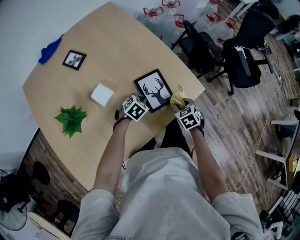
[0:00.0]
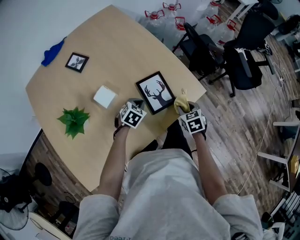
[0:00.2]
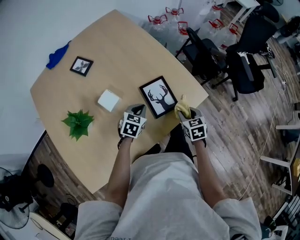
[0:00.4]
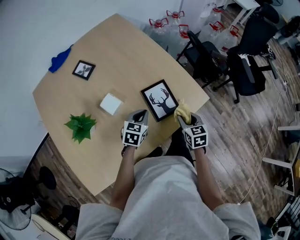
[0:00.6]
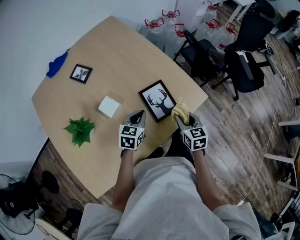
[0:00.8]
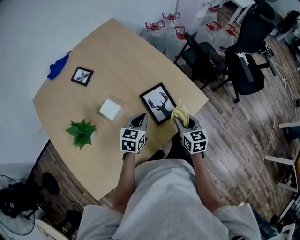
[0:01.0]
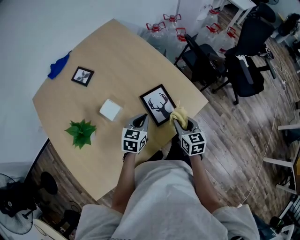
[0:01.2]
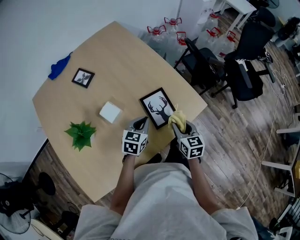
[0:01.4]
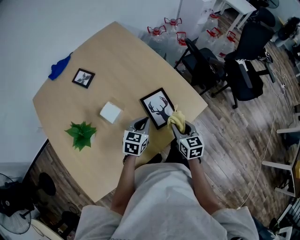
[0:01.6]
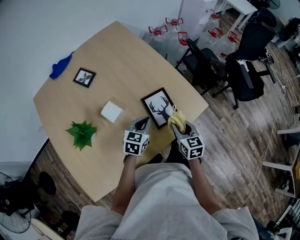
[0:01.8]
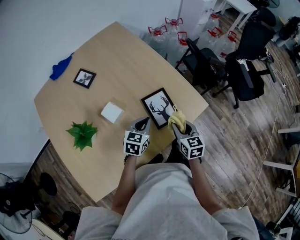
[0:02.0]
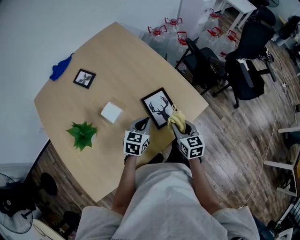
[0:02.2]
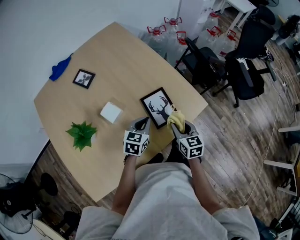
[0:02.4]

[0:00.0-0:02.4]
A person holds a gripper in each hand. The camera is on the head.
0:00.0 to 0:01.2: The grippers both shift upward by about 10 cm. The left gripper turns by approximately 40 degrees. Meanwhile the right gripper swivels about 40 degrees.
0:01.2 to 0:02.4: The grippers move only a little.

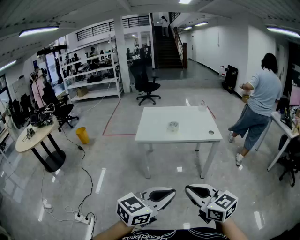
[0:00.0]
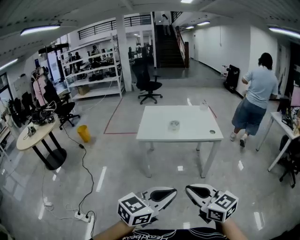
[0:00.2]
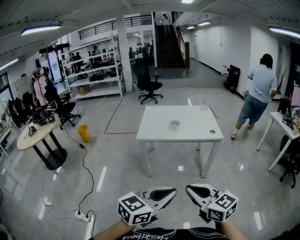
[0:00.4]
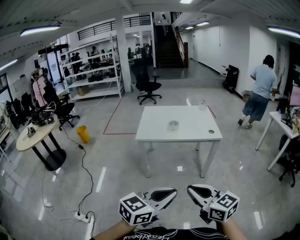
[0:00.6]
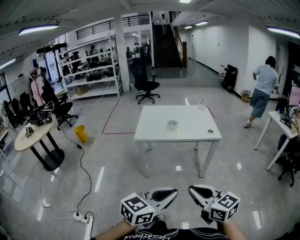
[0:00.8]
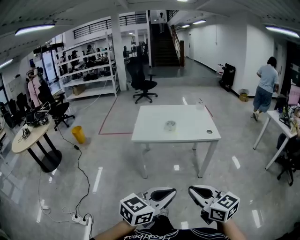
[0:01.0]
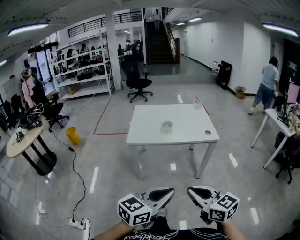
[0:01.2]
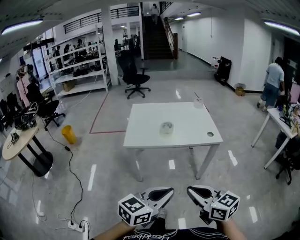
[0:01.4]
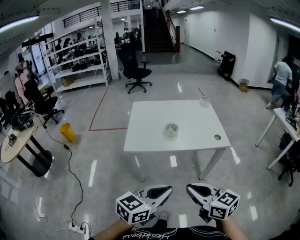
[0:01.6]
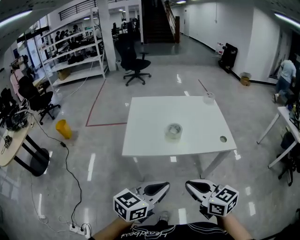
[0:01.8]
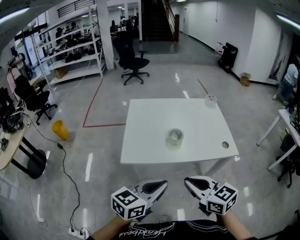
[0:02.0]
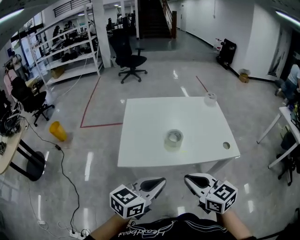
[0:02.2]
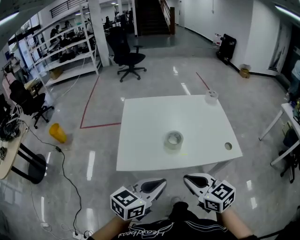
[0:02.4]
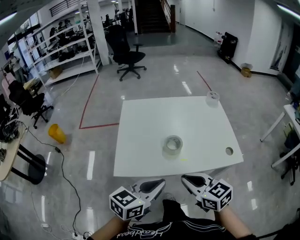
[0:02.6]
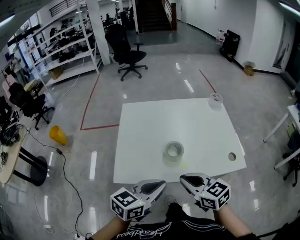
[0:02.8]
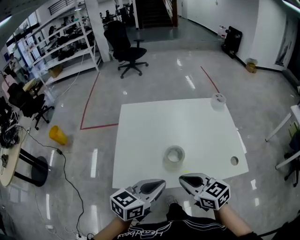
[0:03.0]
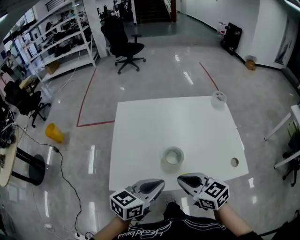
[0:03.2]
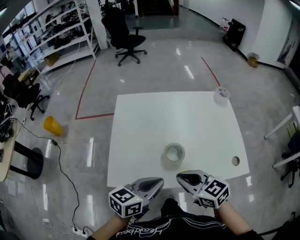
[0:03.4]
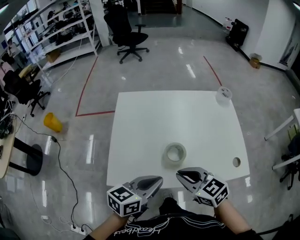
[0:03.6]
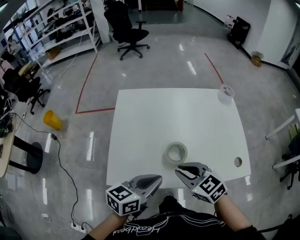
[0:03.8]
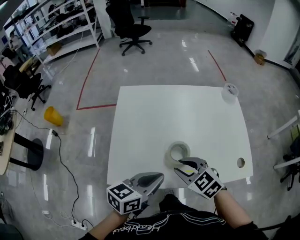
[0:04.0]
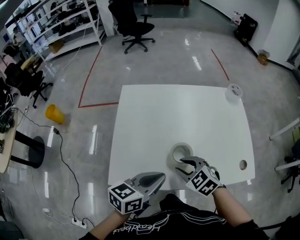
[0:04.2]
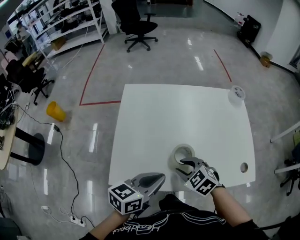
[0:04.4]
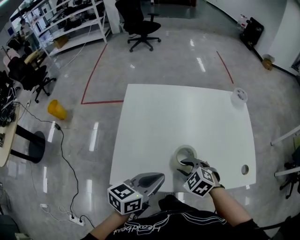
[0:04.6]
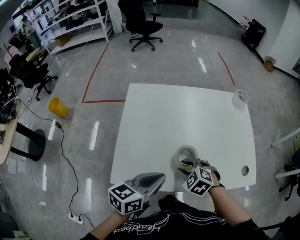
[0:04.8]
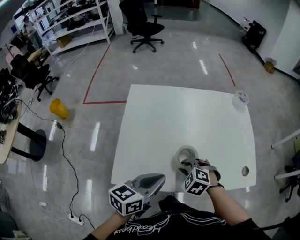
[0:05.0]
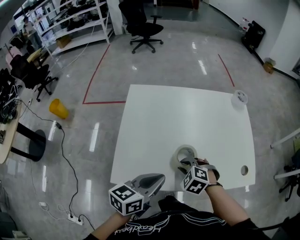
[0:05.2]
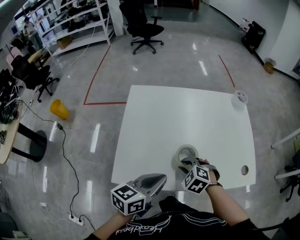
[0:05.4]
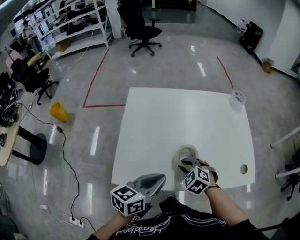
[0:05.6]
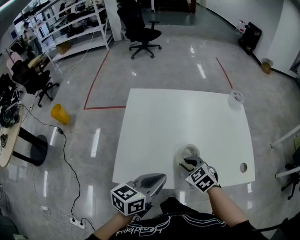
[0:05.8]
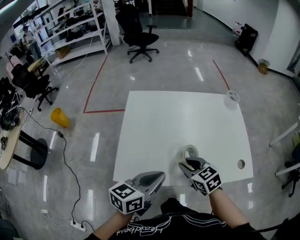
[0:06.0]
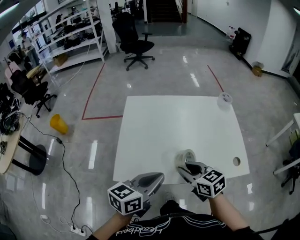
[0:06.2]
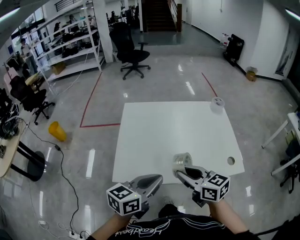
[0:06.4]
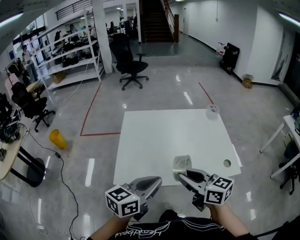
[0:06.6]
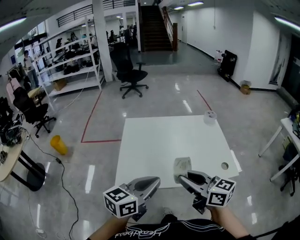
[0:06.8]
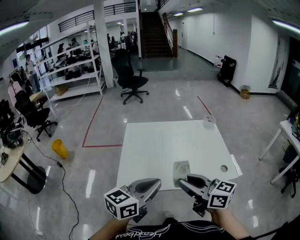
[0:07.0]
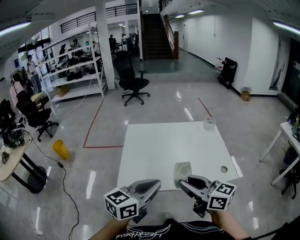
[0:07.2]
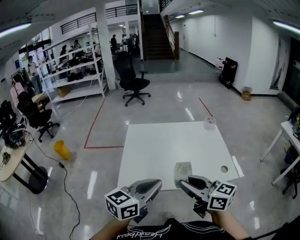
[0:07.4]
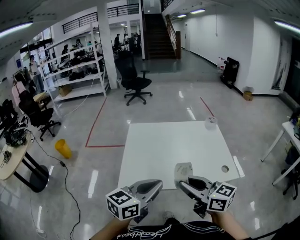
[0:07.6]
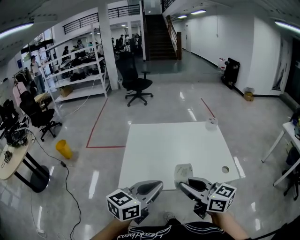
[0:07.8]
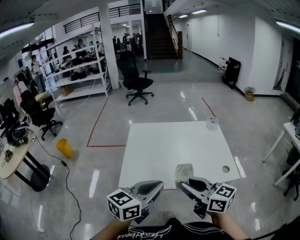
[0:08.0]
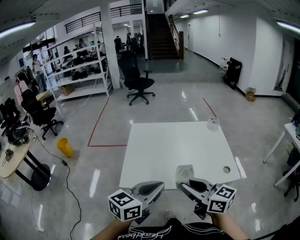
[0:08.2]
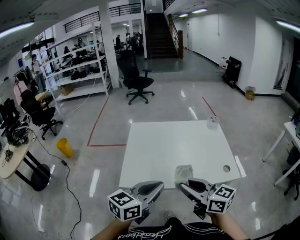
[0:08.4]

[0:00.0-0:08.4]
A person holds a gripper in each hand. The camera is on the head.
0:00.0 to 0:01.4: Both grippers travel together forward, about 15 cm.
0:01.4 to 0:02.8: The grippers both shift forward by some 35 cm.
0:02.8 to 0:04.2: The right gripper shifts roughly 15 cm downward and forward, swivels about 30 degrees, and opens up, while the left gripper shifts approximately 10 cm forward and downward.
0:05.6 to 0:07.0: The right gripper travels upward and backward by some 30 cm, and angles its fingers upward, by some 60 degrees, while the left gripper shifts some 20 cm upward and backward.
0:07.0 to 0:08.4: The grippers make only small movements.

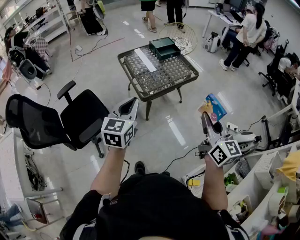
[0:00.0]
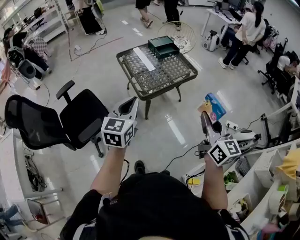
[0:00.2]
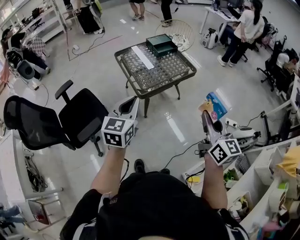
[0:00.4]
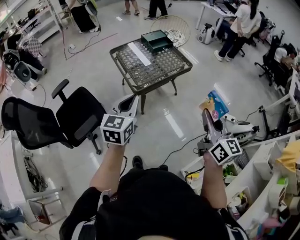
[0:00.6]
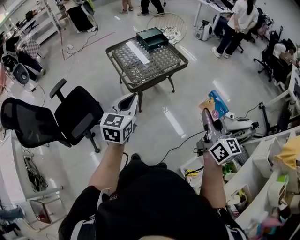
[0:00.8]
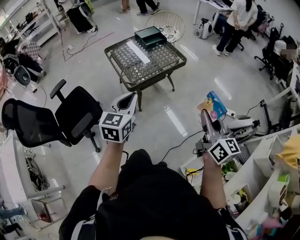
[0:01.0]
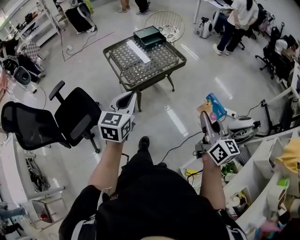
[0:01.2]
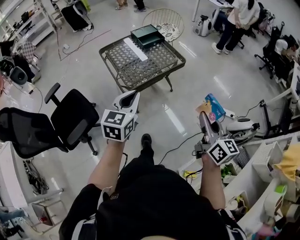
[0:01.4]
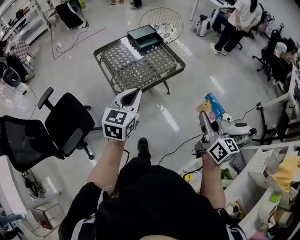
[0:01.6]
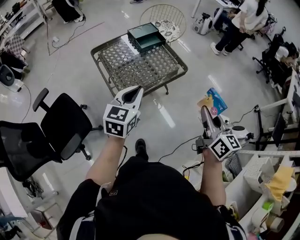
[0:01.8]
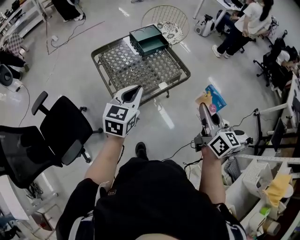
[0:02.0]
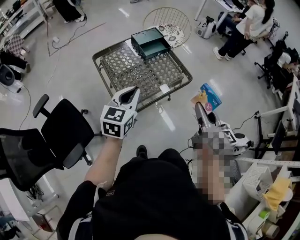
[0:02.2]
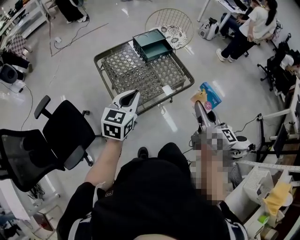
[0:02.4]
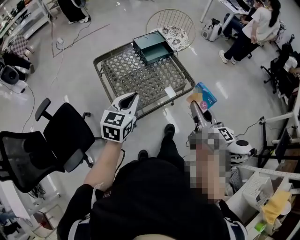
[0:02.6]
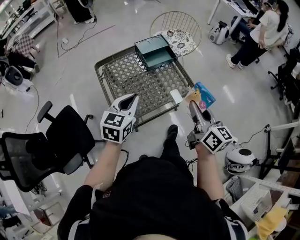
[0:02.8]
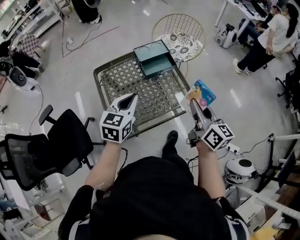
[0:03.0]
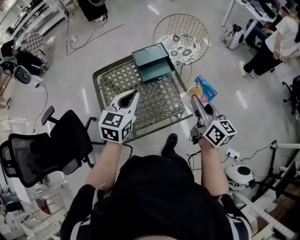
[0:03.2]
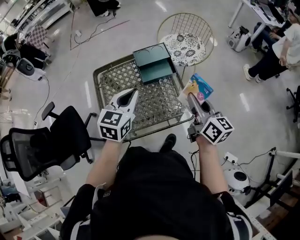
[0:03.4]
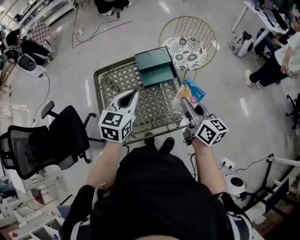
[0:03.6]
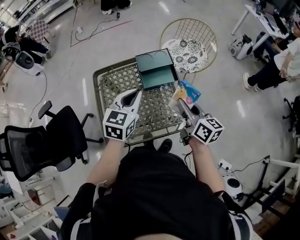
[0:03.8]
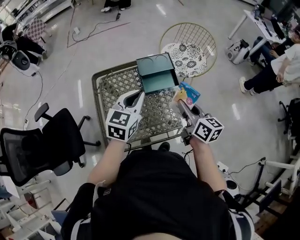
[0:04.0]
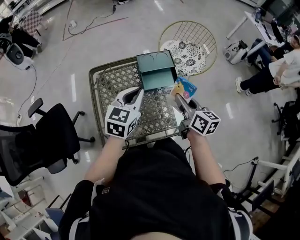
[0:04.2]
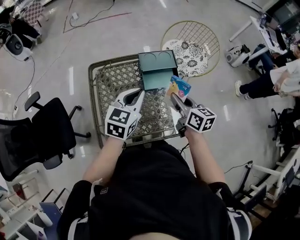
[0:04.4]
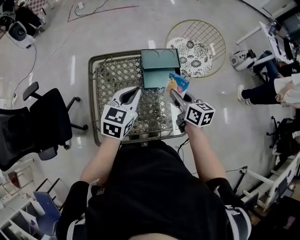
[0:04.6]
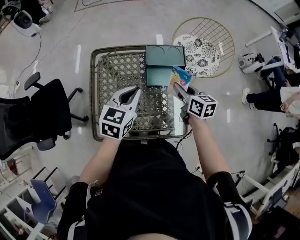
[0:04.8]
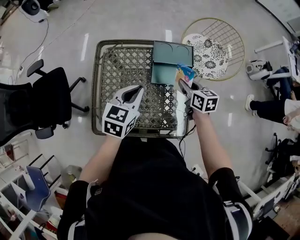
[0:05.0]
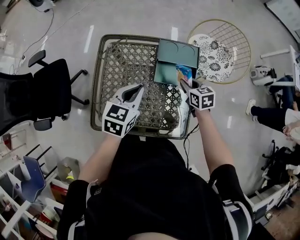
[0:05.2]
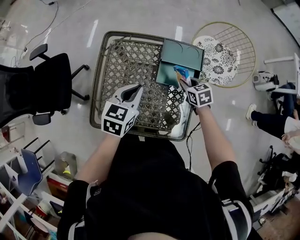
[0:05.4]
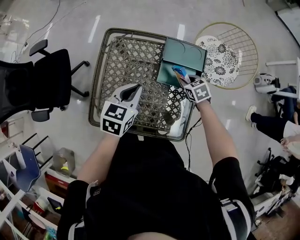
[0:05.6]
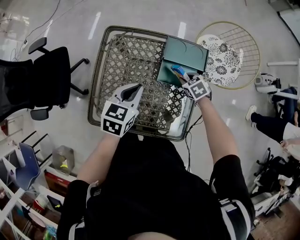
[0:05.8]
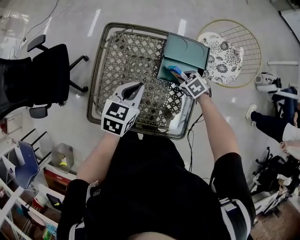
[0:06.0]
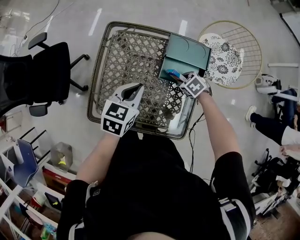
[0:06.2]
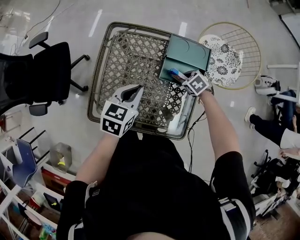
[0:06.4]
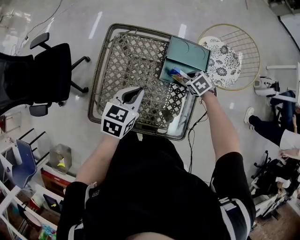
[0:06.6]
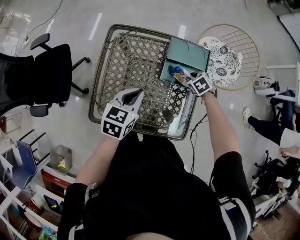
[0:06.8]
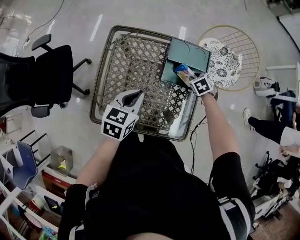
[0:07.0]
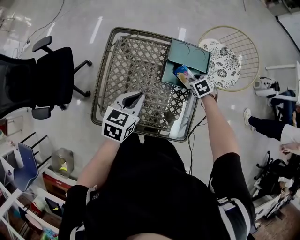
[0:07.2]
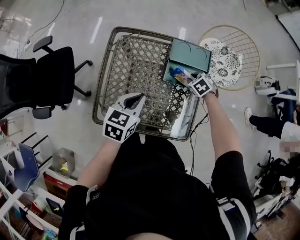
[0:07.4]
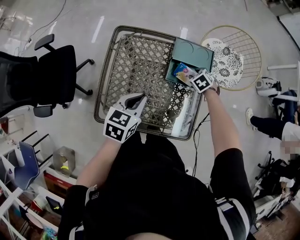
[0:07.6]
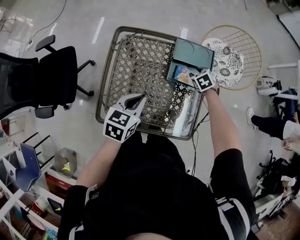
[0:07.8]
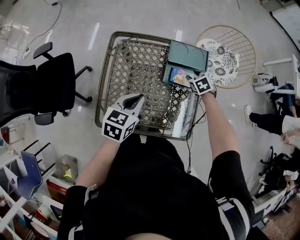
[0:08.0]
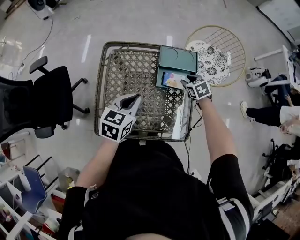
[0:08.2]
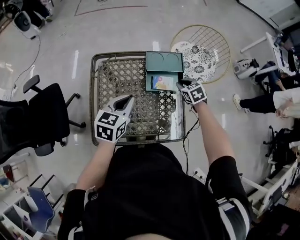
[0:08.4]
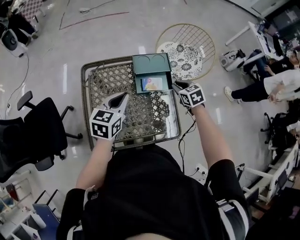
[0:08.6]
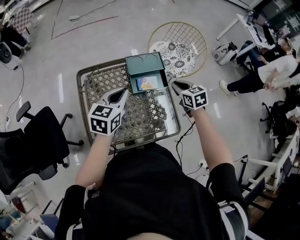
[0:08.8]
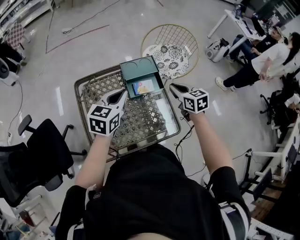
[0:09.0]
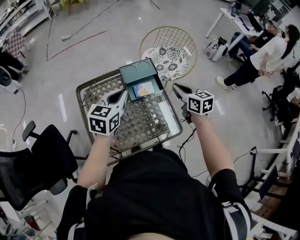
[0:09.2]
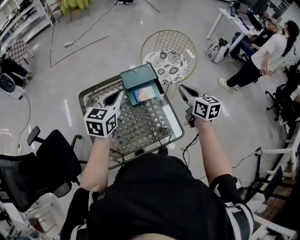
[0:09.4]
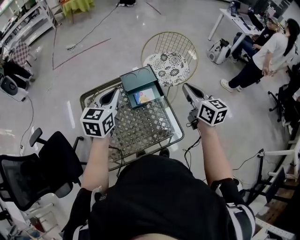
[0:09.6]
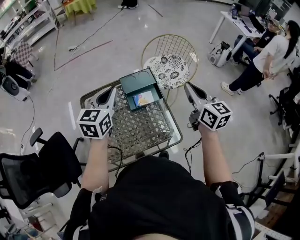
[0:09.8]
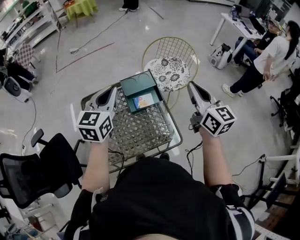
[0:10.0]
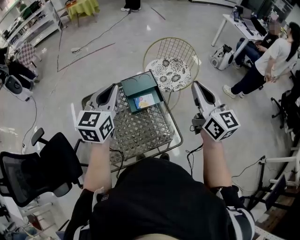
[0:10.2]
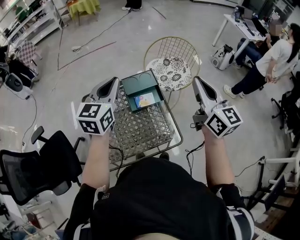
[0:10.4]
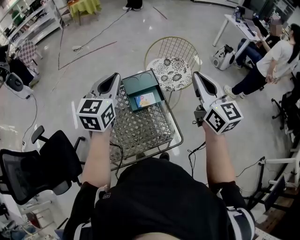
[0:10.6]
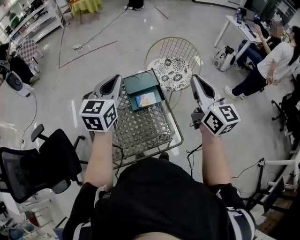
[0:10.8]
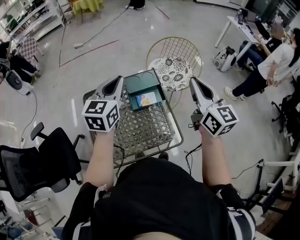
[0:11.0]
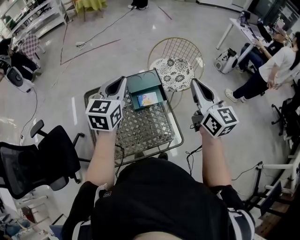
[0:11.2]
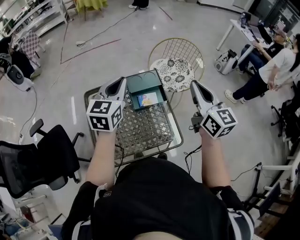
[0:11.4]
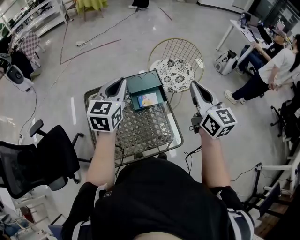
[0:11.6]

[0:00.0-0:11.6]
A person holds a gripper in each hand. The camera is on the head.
0:00.0 to 0:01.4: The right gripper travels to the right and downward by roughly 15 cm. Meanwhile the left gripper moves to the right and forward, some 15 cm.
0:01.4 to 0:02.8: The two grippers go roughly 35 cm forward.
0:02.8 to 0:04.4: The left gripper is displaced forward and to the right by roughly 20 cm. The right gripper is displaced forward by some 25 cm, and turns by roughly 30 degrees.
0:04.4 to 0:05.8: The right gripper goes approximately 25 cm downward, and angles its fingers downward, by approximately 40 degrees; the left gripper goes approximately 10 cm downward, and turns by approximately 30 degrees.
0:05.8 to 0:07.2: There are only small adjustments of the grippers.
0:07.2 to 0:08.8: The left gripper shifts about 10 cm upward and forward, and rotates some 20 degrees, while the right gripper moves upward and backward, approximately 20 cm, and rotates some 40 degrees.
0:08.8 to 0:10.2: The left gripper shifts some 15 cm upward, while the right gripper shifts about 25 cm upward, and tips its fingers upward by about 40 degrees.
0:10.2 to 0:11.6: There are only small adjustments of the grippers.

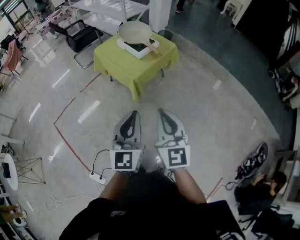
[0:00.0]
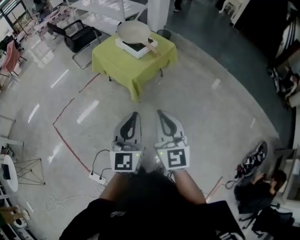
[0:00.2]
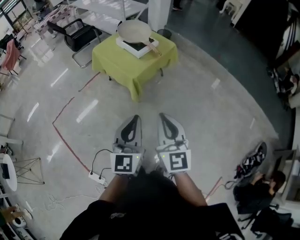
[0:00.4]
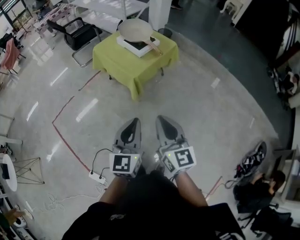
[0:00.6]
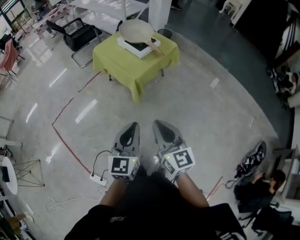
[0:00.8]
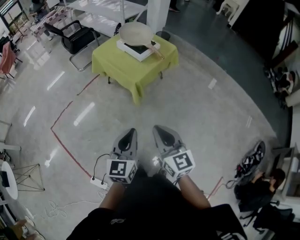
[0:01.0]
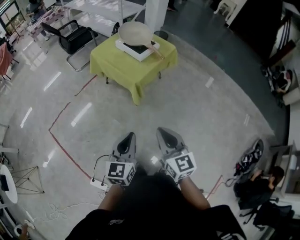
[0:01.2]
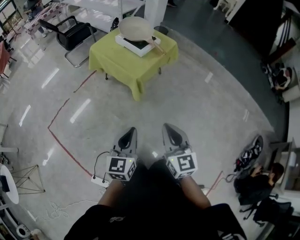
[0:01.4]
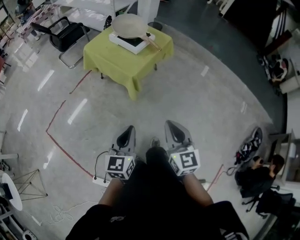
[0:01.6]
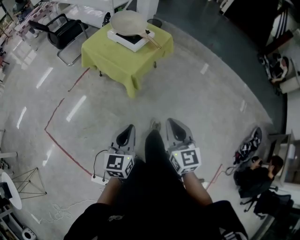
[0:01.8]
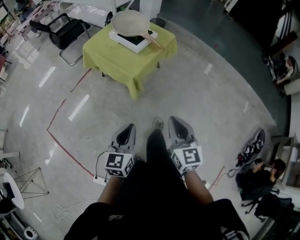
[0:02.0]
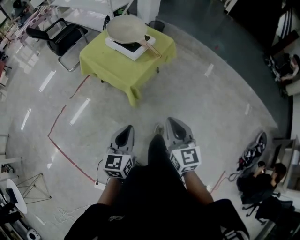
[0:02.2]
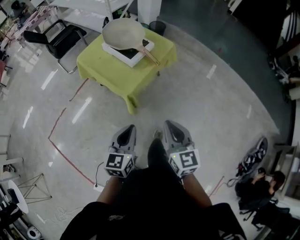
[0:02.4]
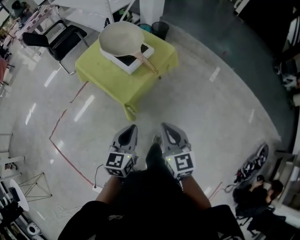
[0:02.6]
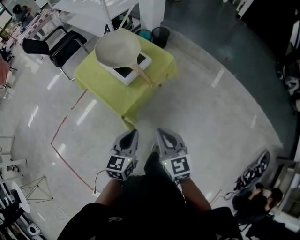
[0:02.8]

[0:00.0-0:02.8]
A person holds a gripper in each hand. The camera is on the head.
0:00.0 to 0:01.4: Both grippers move downward and to the left, some 15 cm. The left gripper turns by about 20 degrees.
0:01.4 to 0:02.8: The right gripper travels forward by roughly 35 cm, while the left gripper goes roughly 35 cm forward and to the right.
